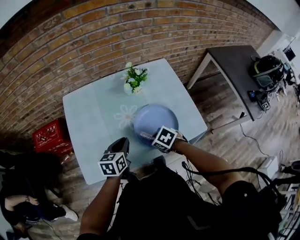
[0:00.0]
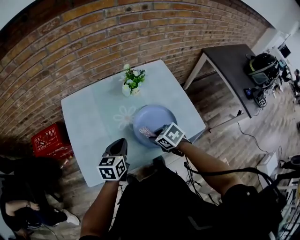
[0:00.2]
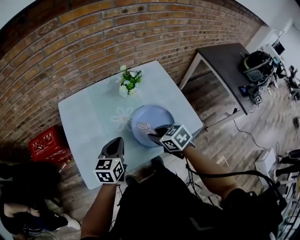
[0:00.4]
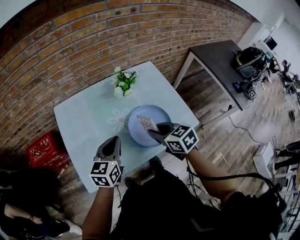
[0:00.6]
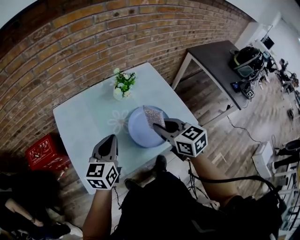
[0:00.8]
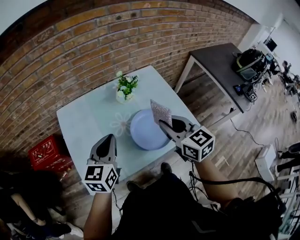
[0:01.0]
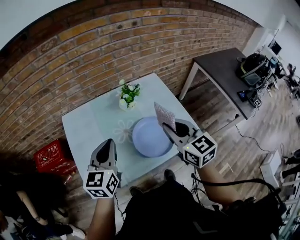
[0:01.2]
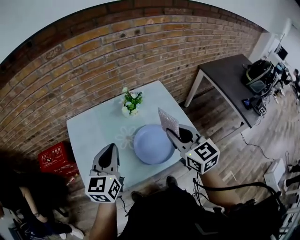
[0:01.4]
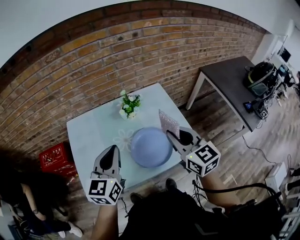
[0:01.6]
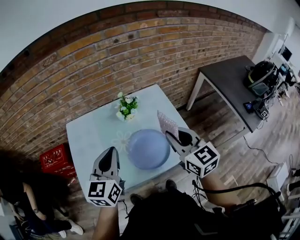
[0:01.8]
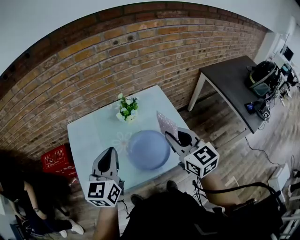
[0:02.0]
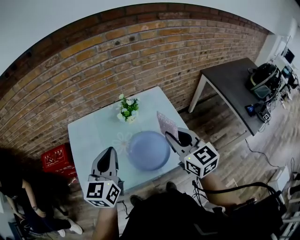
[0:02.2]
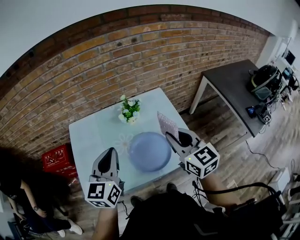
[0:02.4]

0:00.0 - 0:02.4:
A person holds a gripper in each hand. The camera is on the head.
0:00.0 - 0:01.2: The two grippers go about 25 cm upward. The left gripper swivels approximately 30 degrees. The right gripper tilts its fingers some 50 degrees upward.
0:01.2 - 0:02.4: The right gripper travels to the right by about 5 cm. Meanwhile the left gripper heads to the right and upward, covering approximately 10 cm.

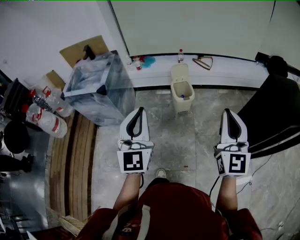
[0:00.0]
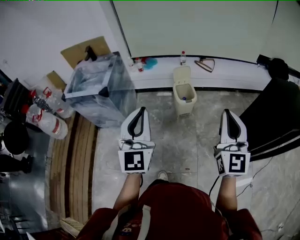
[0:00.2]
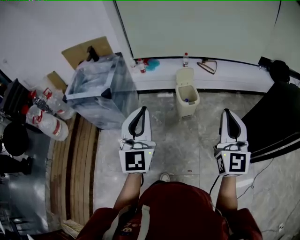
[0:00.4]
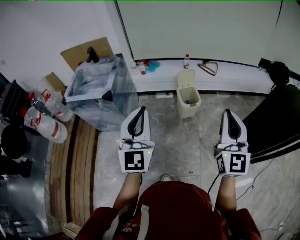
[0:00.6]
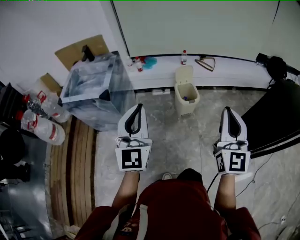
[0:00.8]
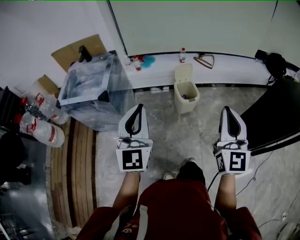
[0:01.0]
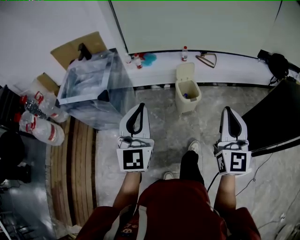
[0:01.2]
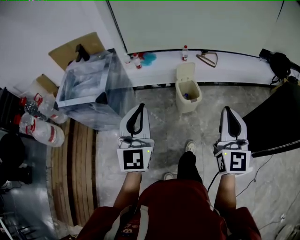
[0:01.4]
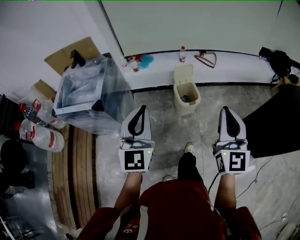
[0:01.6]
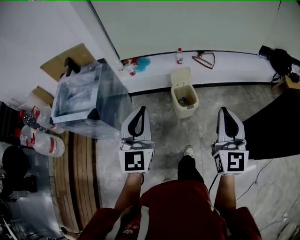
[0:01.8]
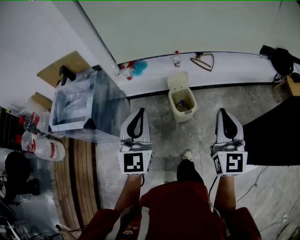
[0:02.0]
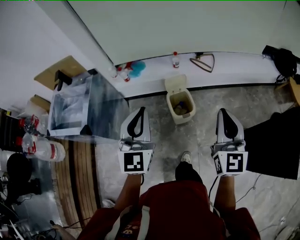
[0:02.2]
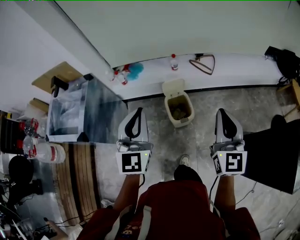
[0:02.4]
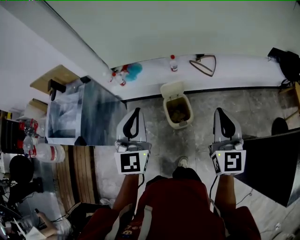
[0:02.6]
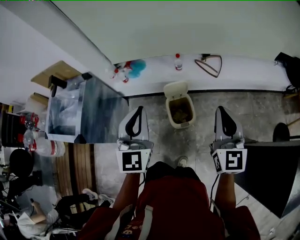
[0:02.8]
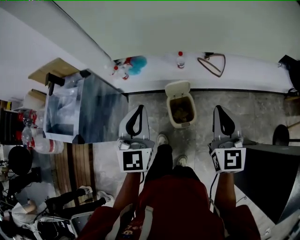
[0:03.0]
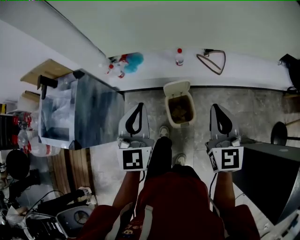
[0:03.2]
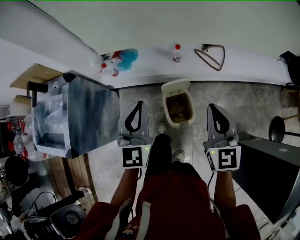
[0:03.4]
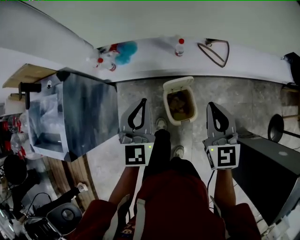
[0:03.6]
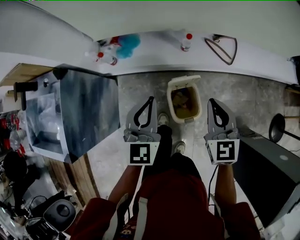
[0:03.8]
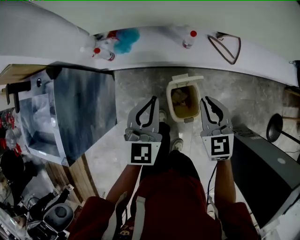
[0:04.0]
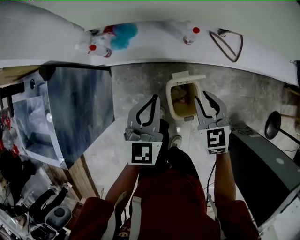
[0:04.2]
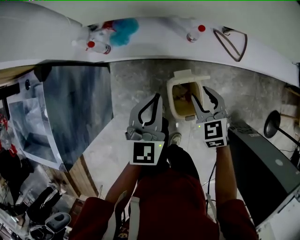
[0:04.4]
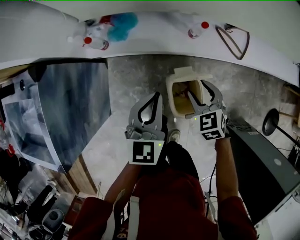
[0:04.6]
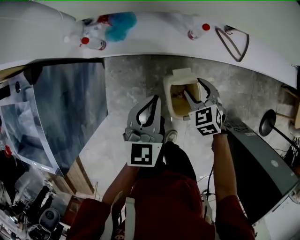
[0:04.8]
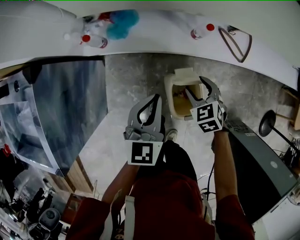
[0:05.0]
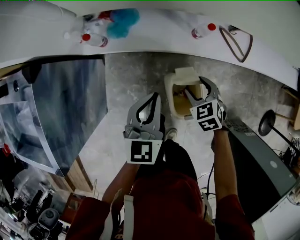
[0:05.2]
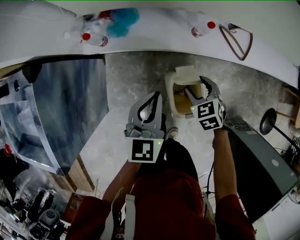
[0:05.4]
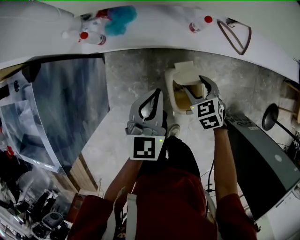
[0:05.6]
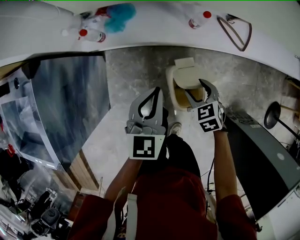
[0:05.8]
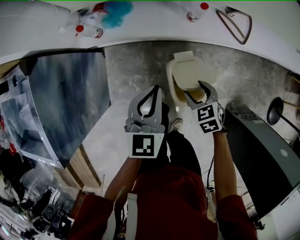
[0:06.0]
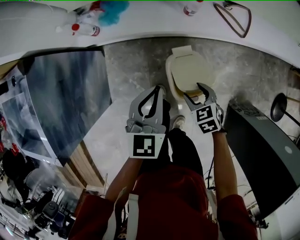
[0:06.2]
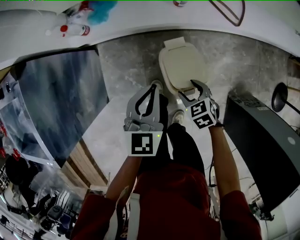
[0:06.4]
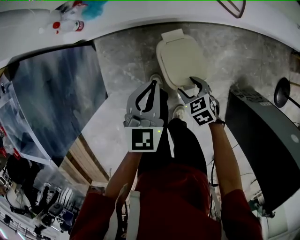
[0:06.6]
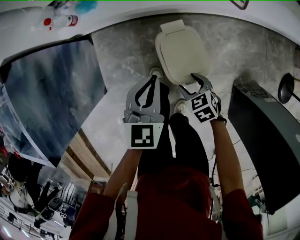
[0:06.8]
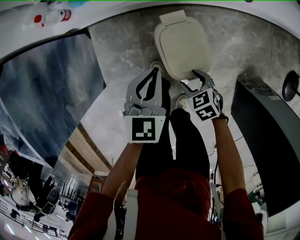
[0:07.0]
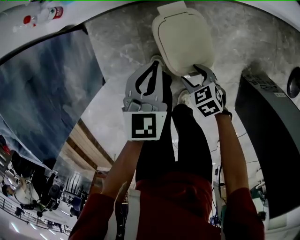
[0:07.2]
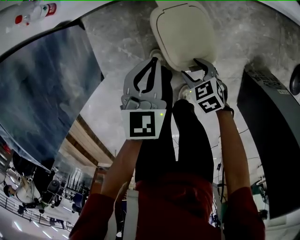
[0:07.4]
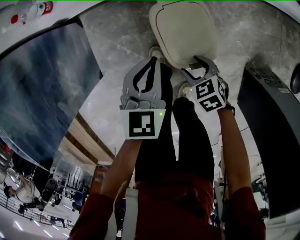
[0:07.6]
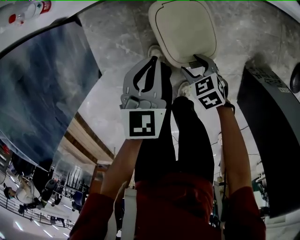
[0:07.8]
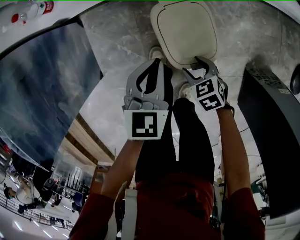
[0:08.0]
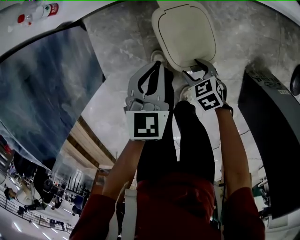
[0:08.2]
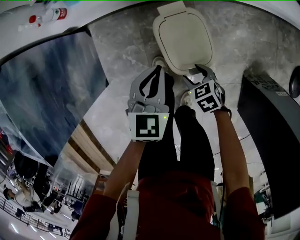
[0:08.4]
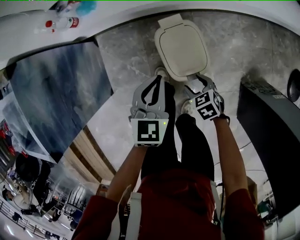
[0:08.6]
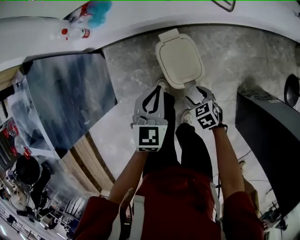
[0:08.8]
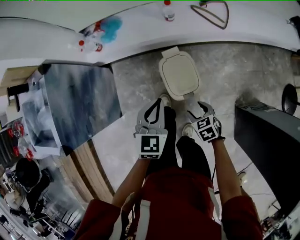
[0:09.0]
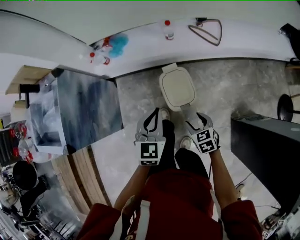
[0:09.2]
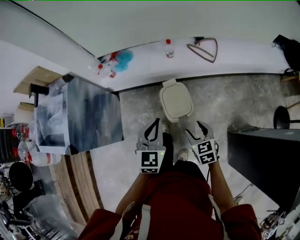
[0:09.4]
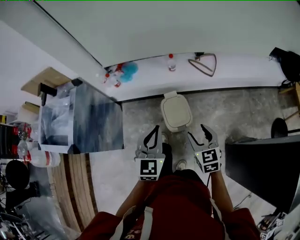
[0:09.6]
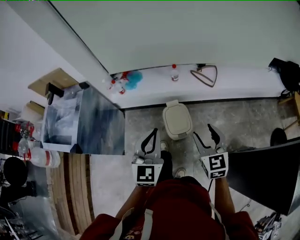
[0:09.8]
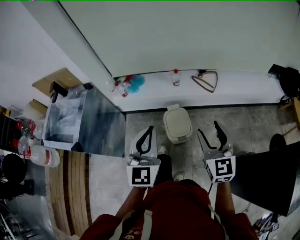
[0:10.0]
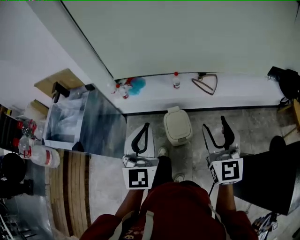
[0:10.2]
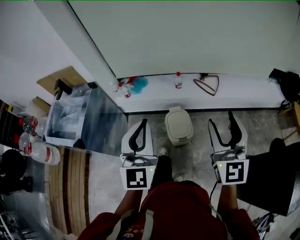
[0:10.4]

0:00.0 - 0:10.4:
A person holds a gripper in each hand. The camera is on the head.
0:00.0 - 0:01.4: Both grippers move forward and to the left, approximately 15 cm.
0:01.4 - 0:03.0: The pair of grippers is taken forward, some 40 cm.
0:03.0 - 0:04.4: The left gripper shifts about 30 cm downward and forward, and rotates approximately 20 degrees. Meanwhile the right gripper goes approximately 40 cm downward, forward and to the left, angles its fingers downward, by some 40 degrees, and opens its fingers.
0:04.4 - 0:06.0: The left gripper is displaced downward by approximately 5 cm. The right gripper goes approximately 15 cm downward and backward.
0:06.0 - 0:07.4: Both grippers move downward and backward, approximately 20 cm.
0:07.4 - 0:09.0: The two grippers go about 15 cm upward and backward.
0:09.0 - 0:10.4: Both grippers travel together upward, approximately 50 cm. The left gripper tilts its fingers some 40 degrees upward. Meanwhile the right gripper points its fingers some 60 degrees further upward.

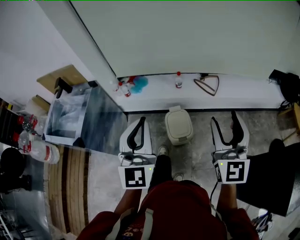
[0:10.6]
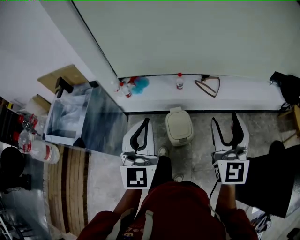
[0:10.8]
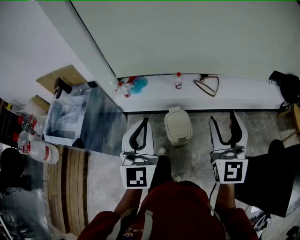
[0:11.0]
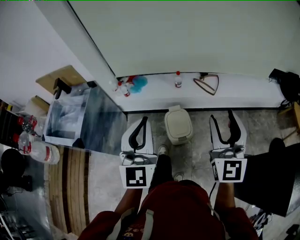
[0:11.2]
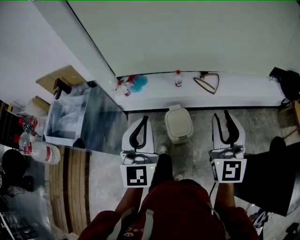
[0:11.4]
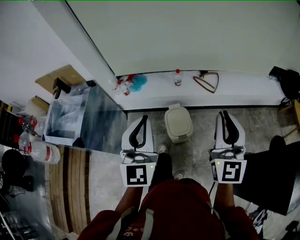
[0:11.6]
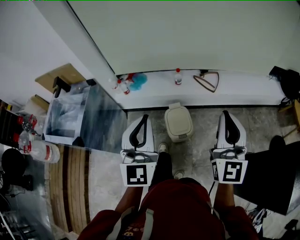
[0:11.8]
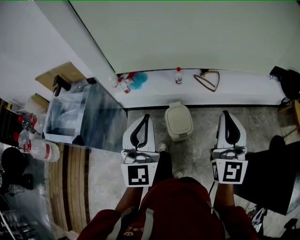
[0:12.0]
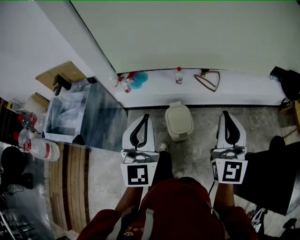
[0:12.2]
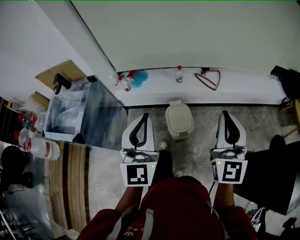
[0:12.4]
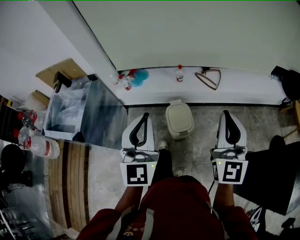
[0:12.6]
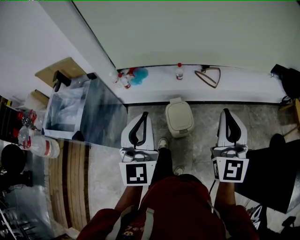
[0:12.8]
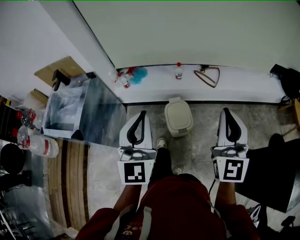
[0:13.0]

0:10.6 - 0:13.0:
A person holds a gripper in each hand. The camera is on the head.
0:10.6 - 0:11.8: The right gripper closes its fingers.
0:11.8 - 0:13.0: The grippers stay close to where they were, moving slightly.

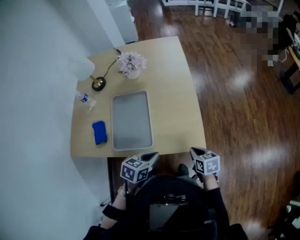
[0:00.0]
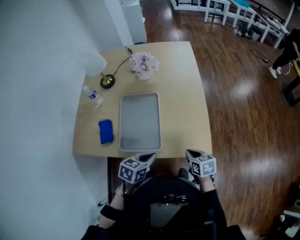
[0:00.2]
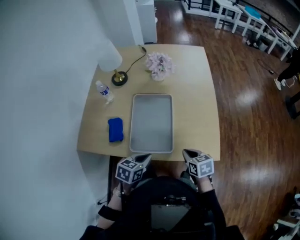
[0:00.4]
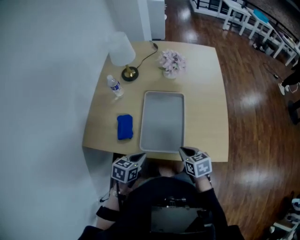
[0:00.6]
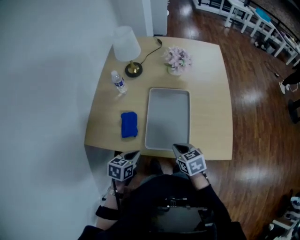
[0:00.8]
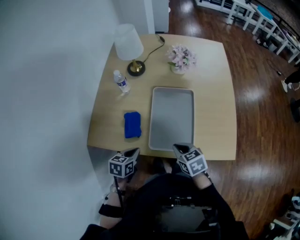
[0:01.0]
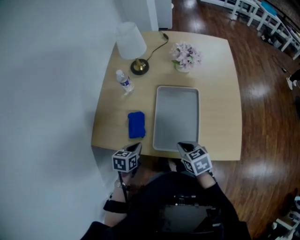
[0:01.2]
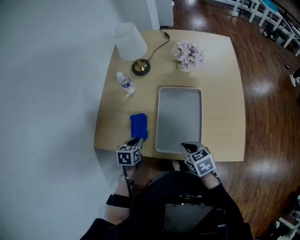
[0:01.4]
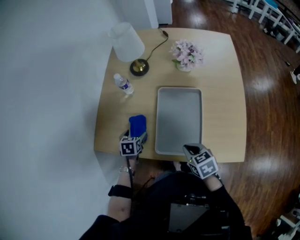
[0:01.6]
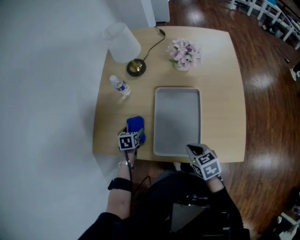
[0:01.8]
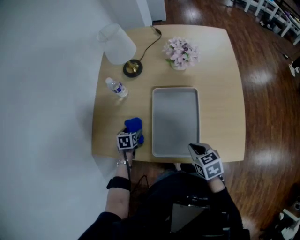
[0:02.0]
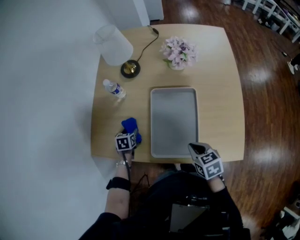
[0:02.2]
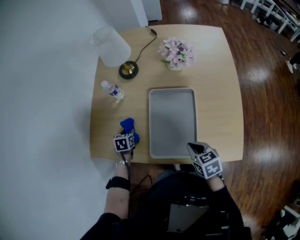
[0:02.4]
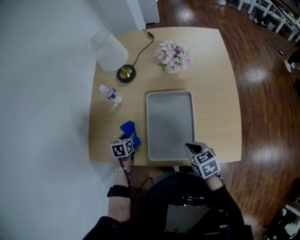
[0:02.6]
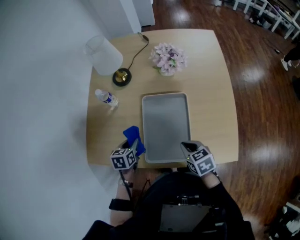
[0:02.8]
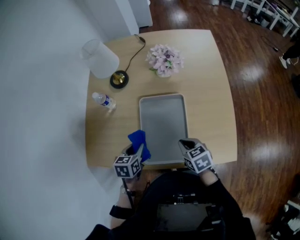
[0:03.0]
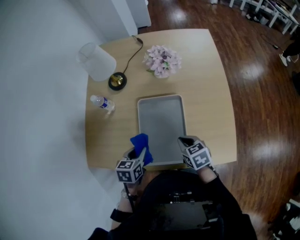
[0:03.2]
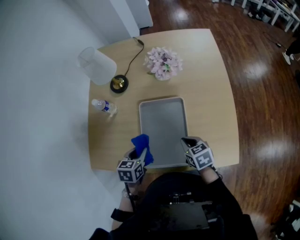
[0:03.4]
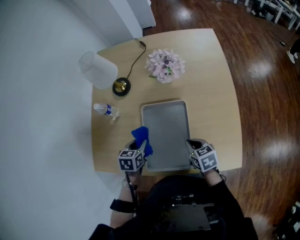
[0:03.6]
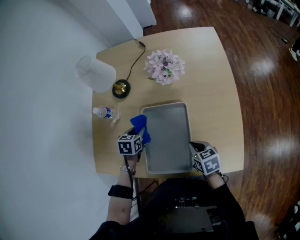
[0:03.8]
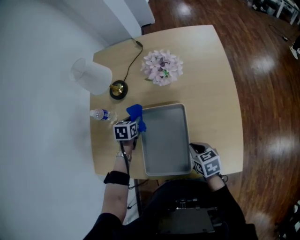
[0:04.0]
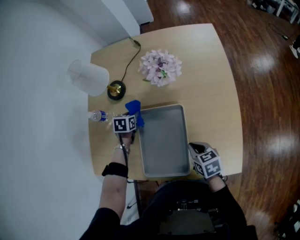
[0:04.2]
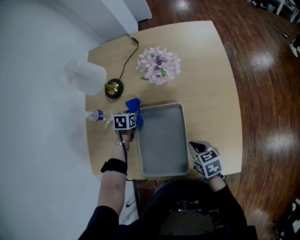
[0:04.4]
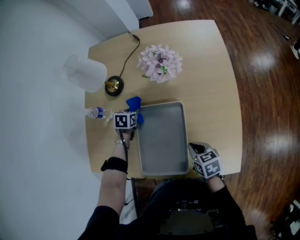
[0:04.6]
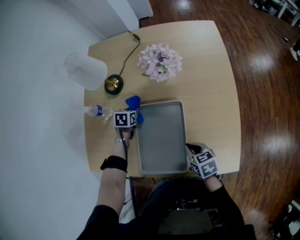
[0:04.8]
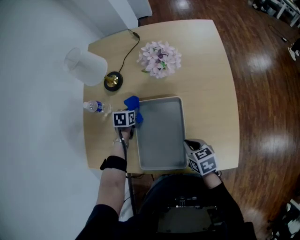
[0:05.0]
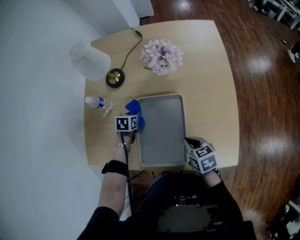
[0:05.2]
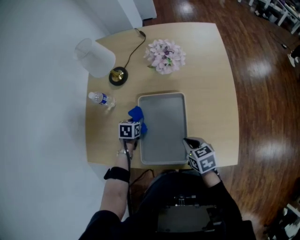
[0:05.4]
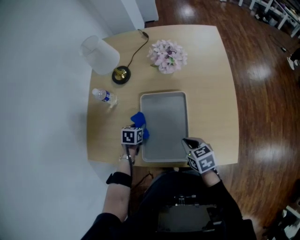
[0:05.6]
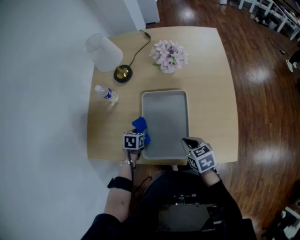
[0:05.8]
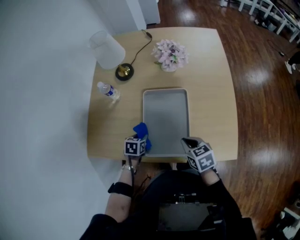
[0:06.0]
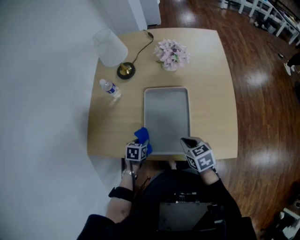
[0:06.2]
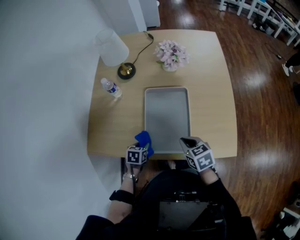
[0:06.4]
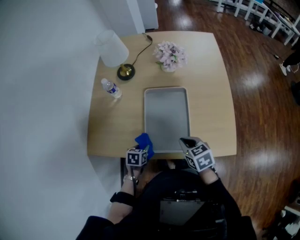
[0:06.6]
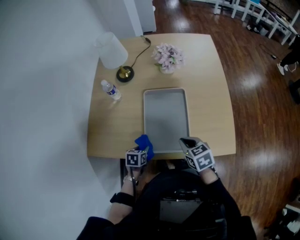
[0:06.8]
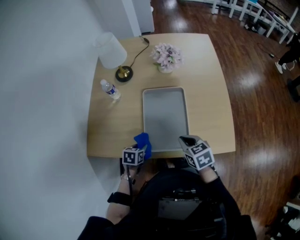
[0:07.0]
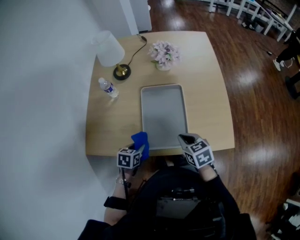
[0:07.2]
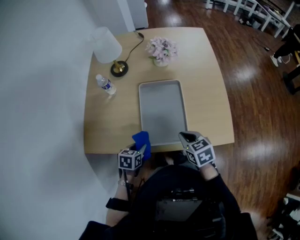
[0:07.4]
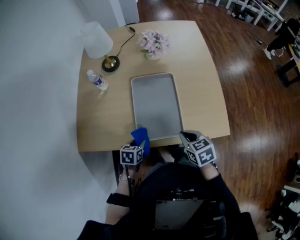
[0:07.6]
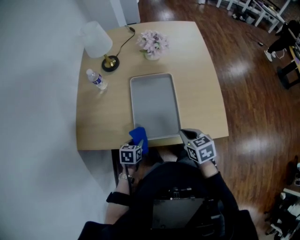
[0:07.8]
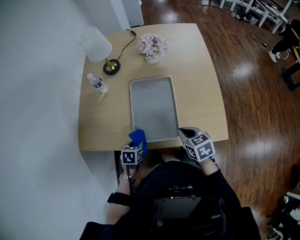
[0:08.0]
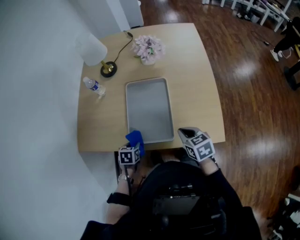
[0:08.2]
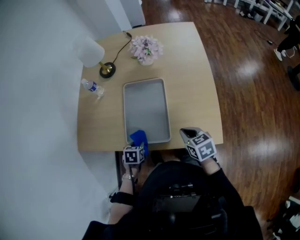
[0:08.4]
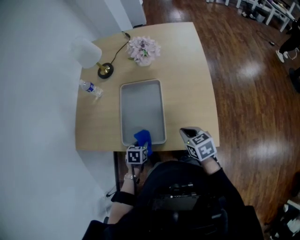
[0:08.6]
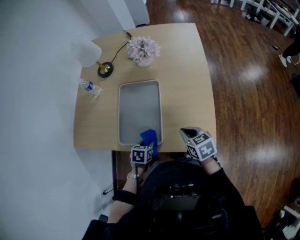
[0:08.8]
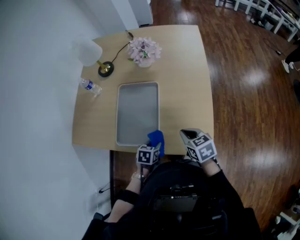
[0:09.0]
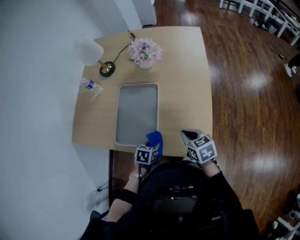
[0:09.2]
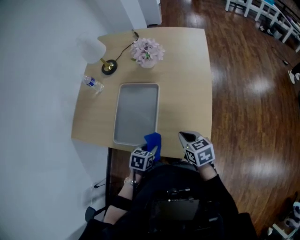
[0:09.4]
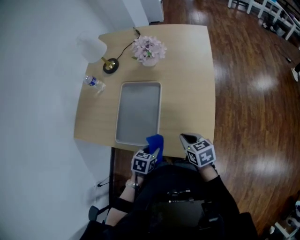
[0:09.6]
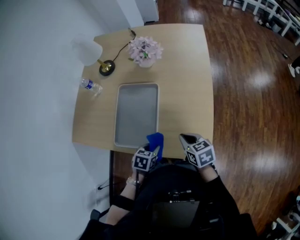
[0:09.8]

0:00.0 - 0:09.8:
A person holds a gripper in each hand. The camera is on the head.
0:00.0 - 0:01.4: The left gripper moves some 40 cm, and rotates some 30 degrees. Meanwhile the right gripper moves roughly 35 cm, and changes its angle by about 20 degrees.
0:01.4 - 0:02.8: The left gripper is displaced to the right and forward by about 10 cm, and opens, then closes again; the right gripper moves to the right, about 10 cm.
0:02.8 - 0:04.2: The left gripper shifts approximately 25 cm forward and to the right. The right gripper goes roughly 10 cm to the right and forward.
0:04.2 - 0:05.6: The right gripper is displaced to the left by about 5 cm; the left gripper is displaced backward by approximately 15 cm.
0:05.6 - 0:07.0: The right gripper moves backward, roughly 5 cm, while the left gripper goes some 15 cm backward.
0:07.0 - 0:08.4: The grippers both shift to the right by about 10 cm.
0:08.4 - 0:09.8: The left gripper heads to the right, covering roughly 20 cm; the right gripper is displaced to the right by approximately 10 cm.
